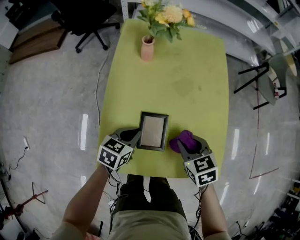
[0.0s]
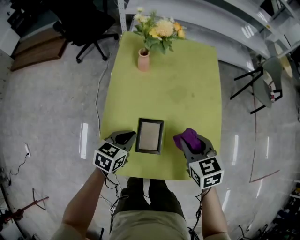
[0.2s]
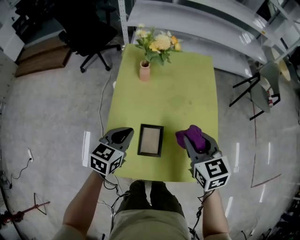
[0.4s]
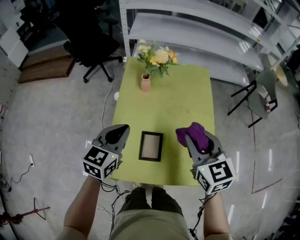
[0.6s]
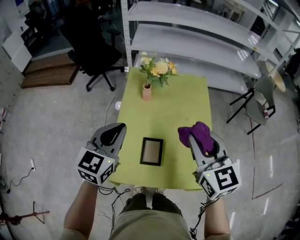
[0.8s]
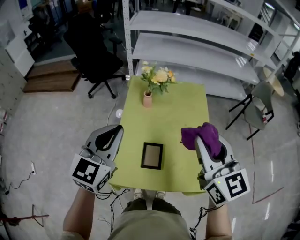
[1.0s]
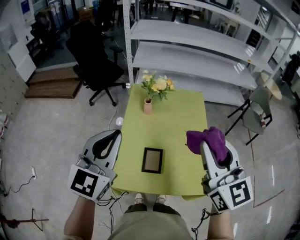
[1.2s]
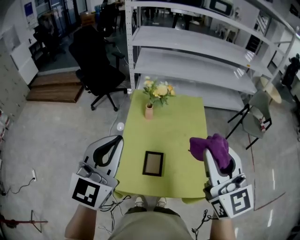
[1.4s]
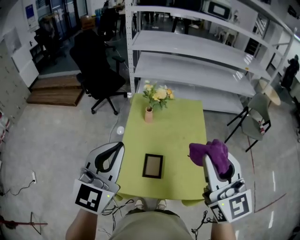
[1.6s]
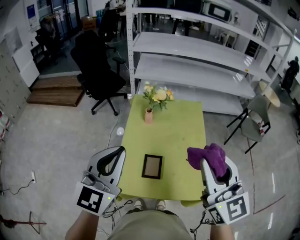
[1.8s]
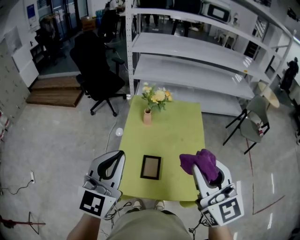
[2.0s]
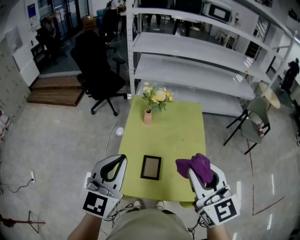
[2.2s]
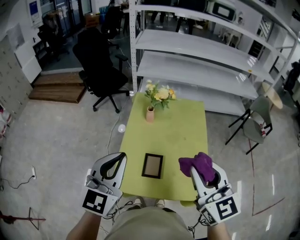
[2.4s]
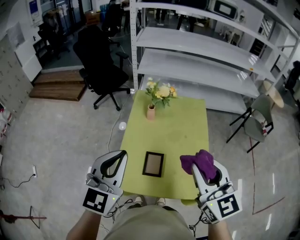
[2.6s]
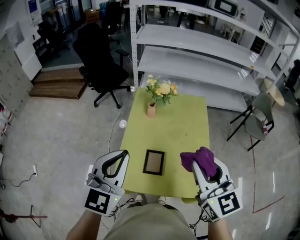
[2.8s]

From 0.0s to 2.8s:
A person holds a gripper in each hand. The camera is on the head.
From 0.0s to 1.4s: Both grippers travel together upward, roughly 50 cm. The left gripper angles its fingers upward, by about 40 degrees. The right gripper angles its fingers upward, by approximately 50 degrees.
From 1.4s to 2.8s: The left gripper ends up some 5 cm from where it was. Meanwhile the right gripper travels downward by roughly 5 cm.

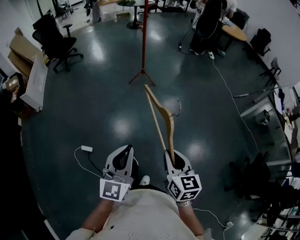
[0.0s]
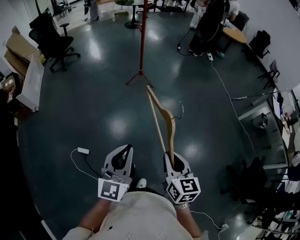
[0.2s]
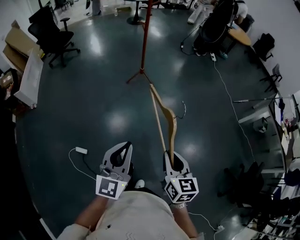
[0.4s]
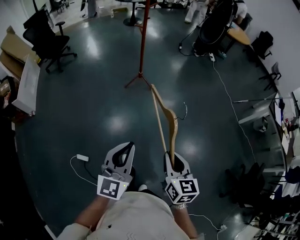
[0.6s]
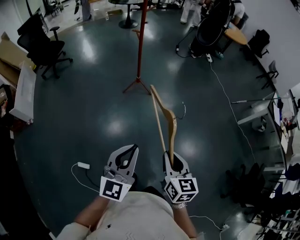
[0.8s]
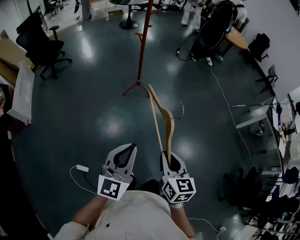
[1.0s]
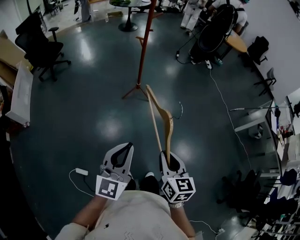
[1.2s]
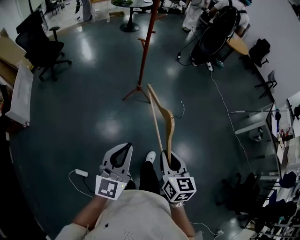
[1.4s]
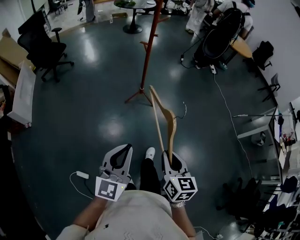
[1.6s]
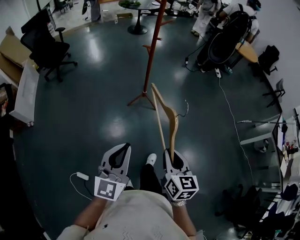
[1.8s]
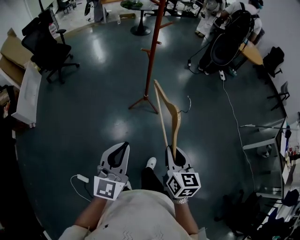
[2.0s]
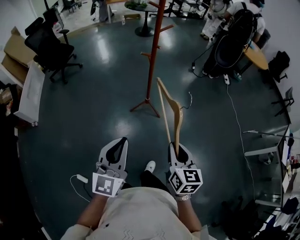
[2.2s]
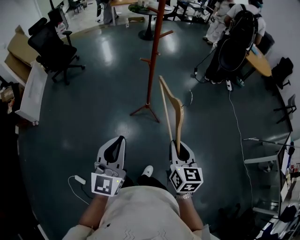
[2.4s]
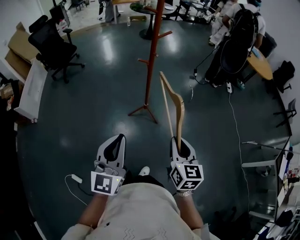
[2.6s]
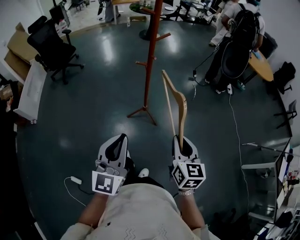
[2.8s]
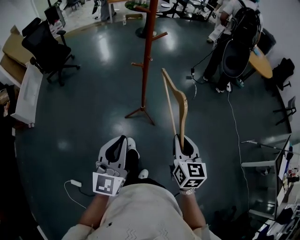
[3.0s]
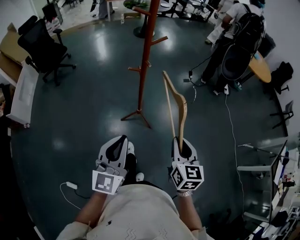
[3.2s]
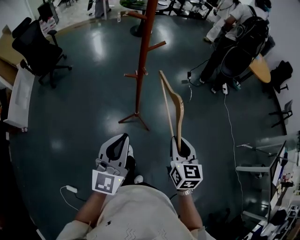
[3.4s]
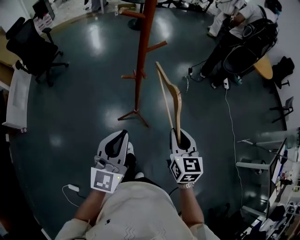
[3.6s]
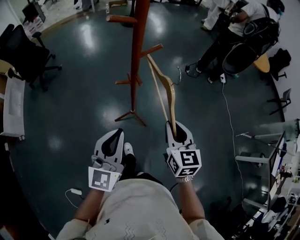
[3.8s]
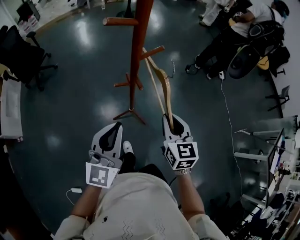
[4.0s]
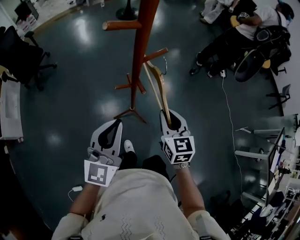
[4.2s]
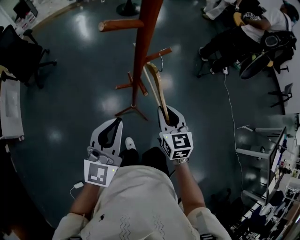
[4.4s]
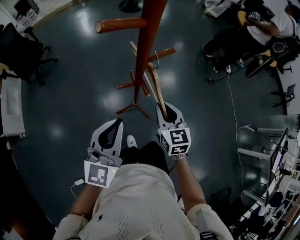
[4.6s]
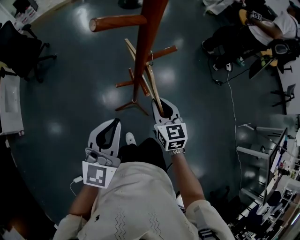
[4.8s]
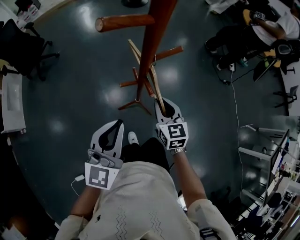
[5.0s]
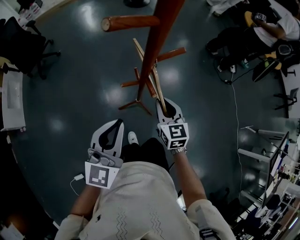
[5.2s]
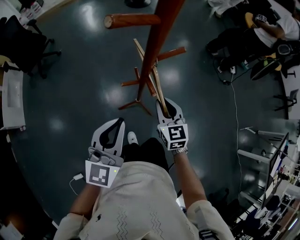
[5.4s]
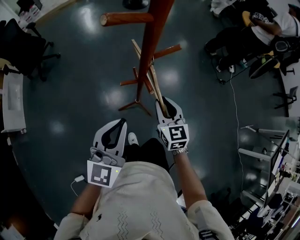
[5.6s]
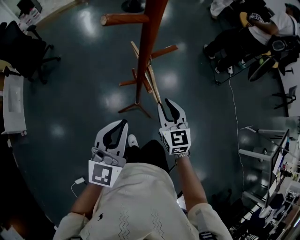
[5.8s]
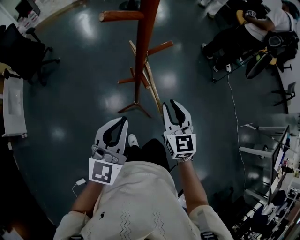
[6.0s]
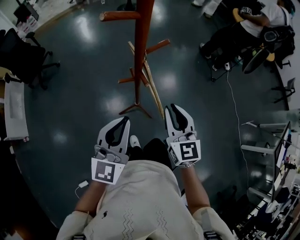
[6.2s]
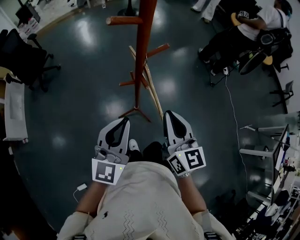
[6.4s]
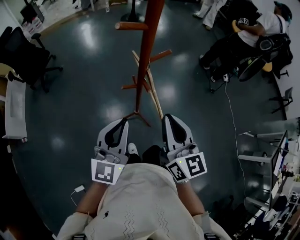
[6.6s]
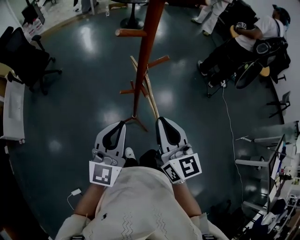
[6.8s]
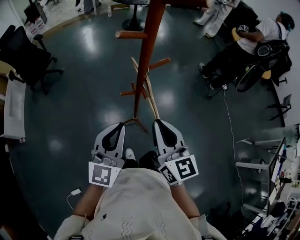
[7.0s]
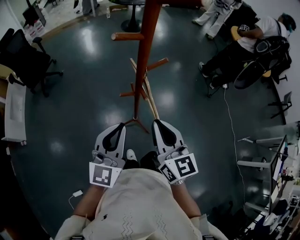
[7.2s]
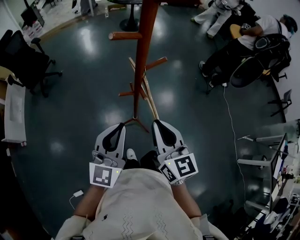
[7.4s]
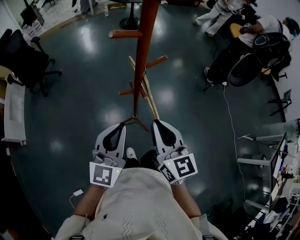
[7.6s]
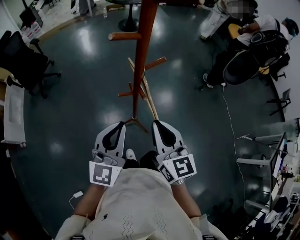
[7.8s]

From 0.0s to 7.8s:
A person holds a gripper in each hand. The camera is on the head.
From 0.0s to 1.6s: The two grippers travel together, forward, some 40 cm.
From 1.6s to 3.2s: The two grippers go some 40 cm forward.
From 3.2s to 4.6s: The two grippers go roughly 30 cm forward.
From 4.6s to 6.2s: The right gripper shifts about 10 cm upward and backward.
From 6.2s to 7.8s: The right gripper shifts approximately 5 cm upward.

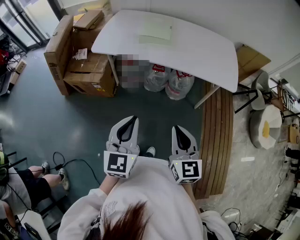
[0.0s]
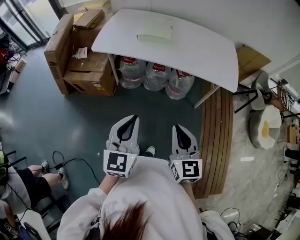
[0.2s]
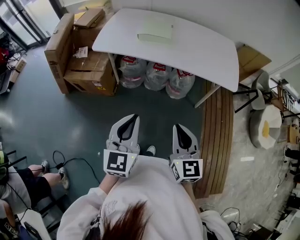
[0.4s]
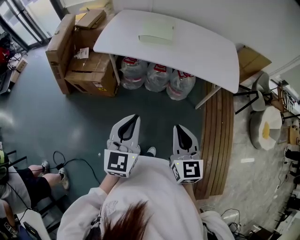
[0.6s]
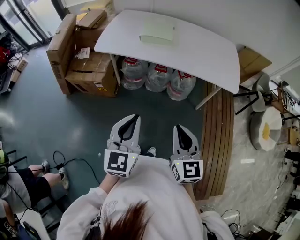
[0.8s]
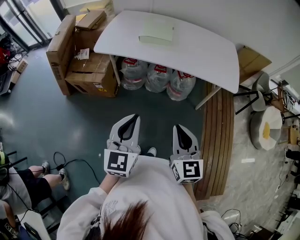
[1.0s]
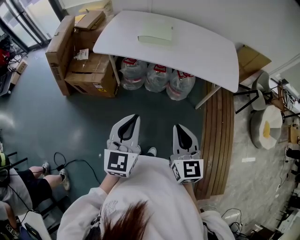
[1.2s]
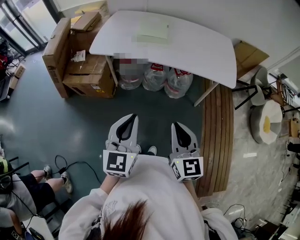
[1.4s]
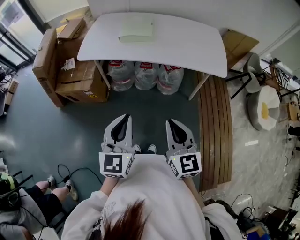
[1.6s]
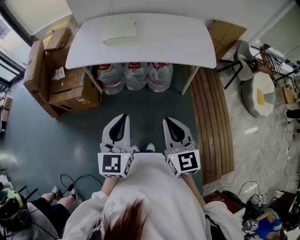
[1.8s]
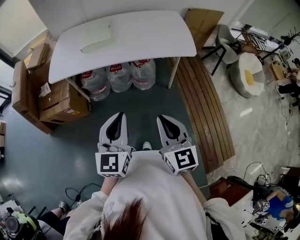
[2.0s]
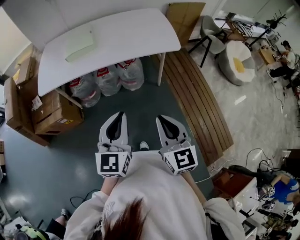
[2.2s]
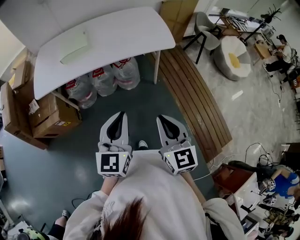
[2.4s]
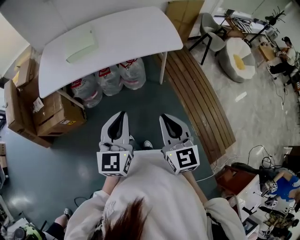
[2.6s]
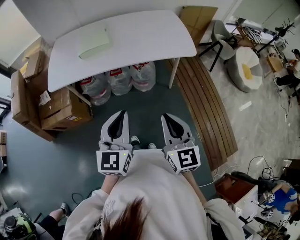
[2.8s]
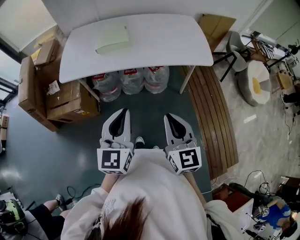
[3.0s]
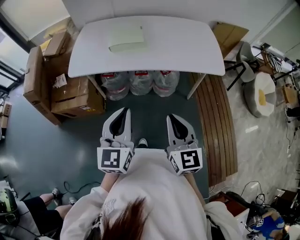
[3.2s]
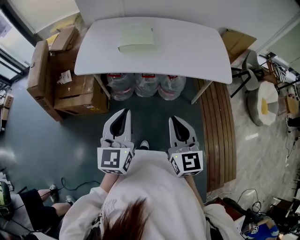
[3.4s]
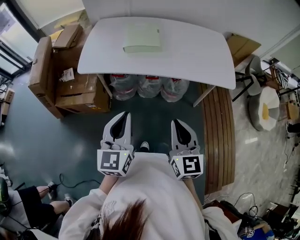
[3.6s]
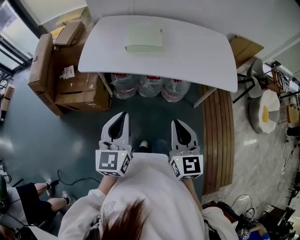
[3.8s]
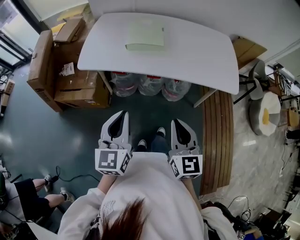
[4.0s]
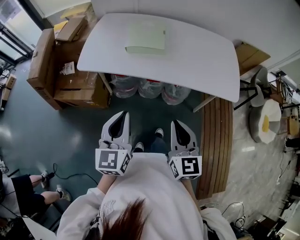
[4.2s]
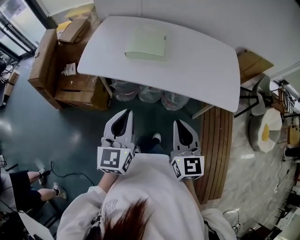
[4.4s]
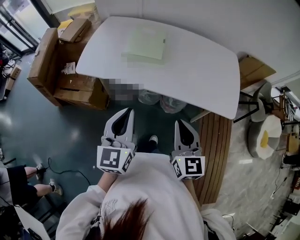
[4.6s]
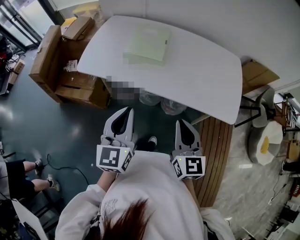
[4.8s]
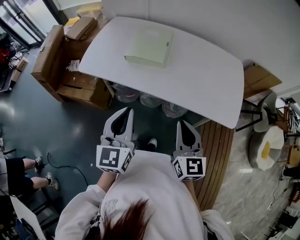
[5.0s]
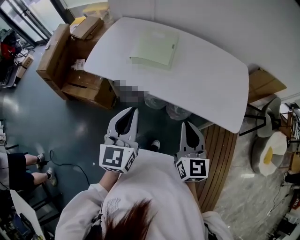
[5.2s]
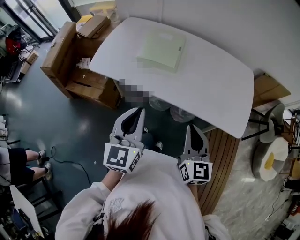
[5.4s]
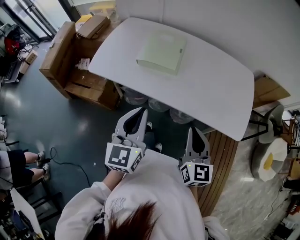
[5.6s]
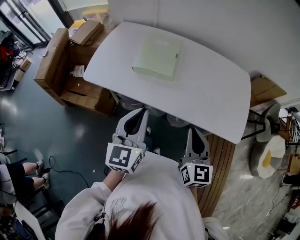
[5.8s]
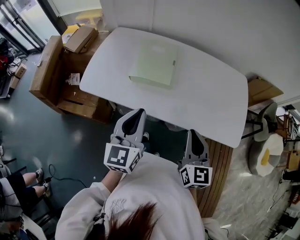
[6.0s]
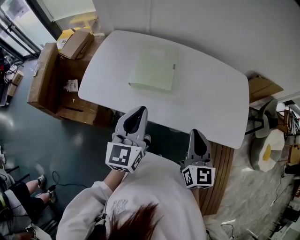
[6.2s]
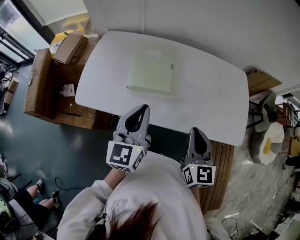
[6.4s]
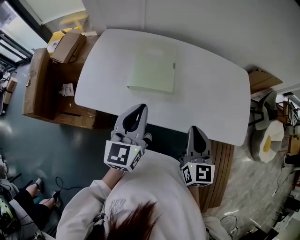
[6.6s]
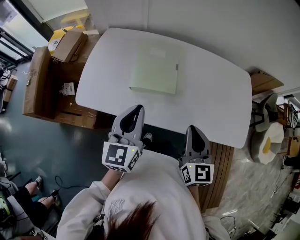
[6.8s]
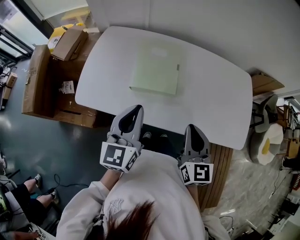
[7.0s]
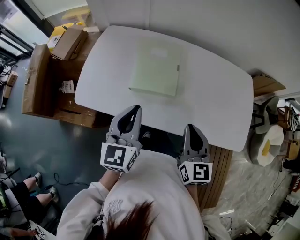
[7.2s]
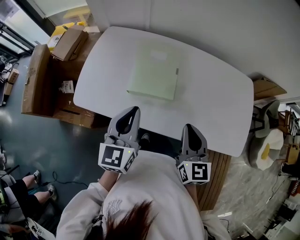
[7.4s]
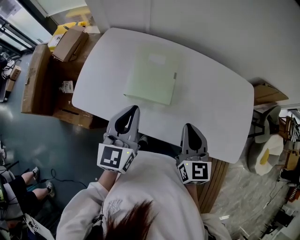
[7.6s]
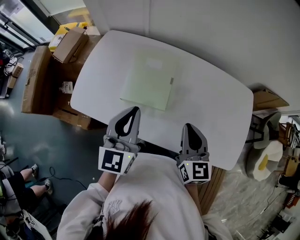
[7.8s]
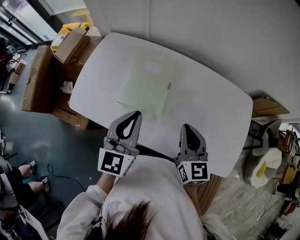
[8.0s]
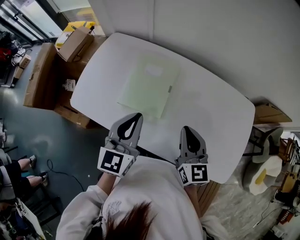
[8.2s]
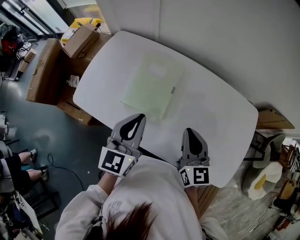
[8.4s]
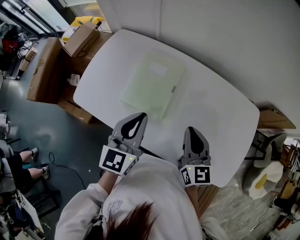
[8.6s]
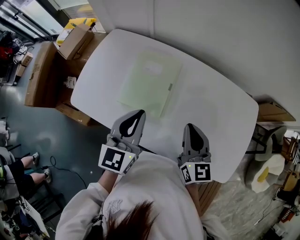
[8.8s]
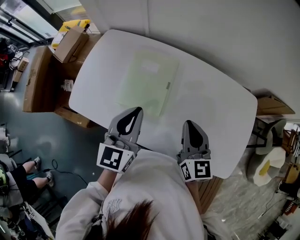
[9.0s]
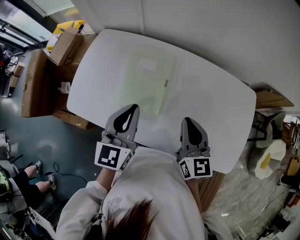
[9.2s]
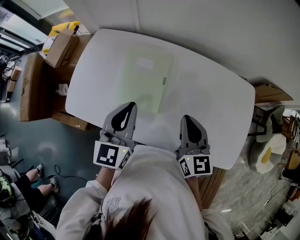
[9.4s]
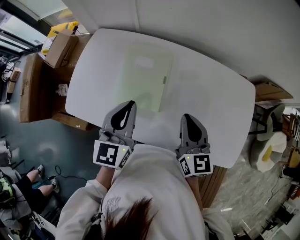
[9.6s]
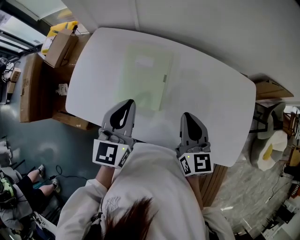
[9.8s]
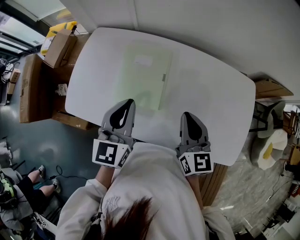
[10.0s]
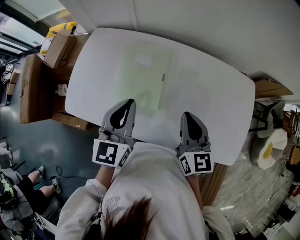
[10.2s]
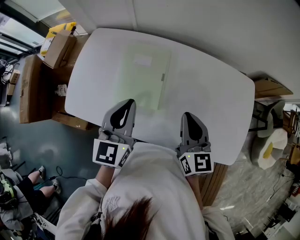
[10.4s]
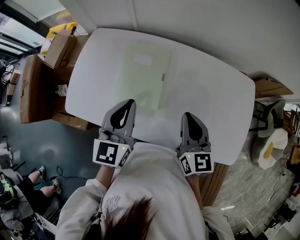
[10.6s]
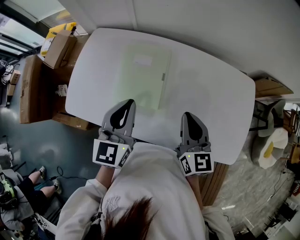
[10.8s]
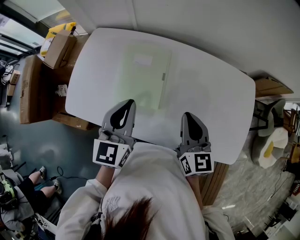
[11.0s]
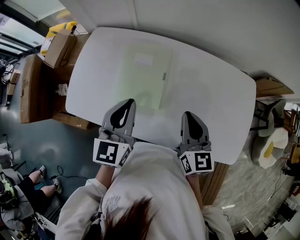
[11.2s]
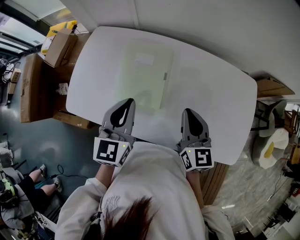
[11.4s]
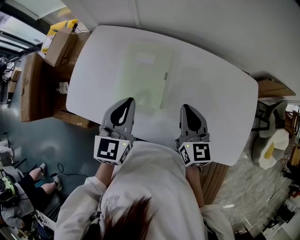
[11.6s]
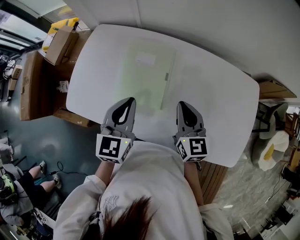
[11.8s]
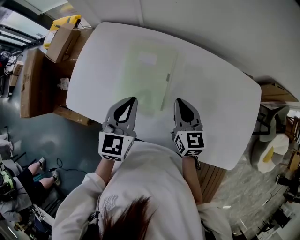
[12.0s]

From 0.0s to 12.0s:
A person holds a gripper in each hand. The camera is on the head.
From 0.0s to 1.6s: The grippers make only small movements.
From 1.6s to 3.0s: The left gripper goes some 5 cm forward, and moves some 15 cm to the right and comes back, while the right gripper travels to the right and back again, some 10 cm each way.
From 3.0s to 4.4s: Both grippers move forward, roughly 15 cm.
From 4.4s to 6.0s: The right gripper travels forward and to the right by approximately 15 cm, while the left gripper heads forward, covering approximately 15 cm.
From 6.0s to 7.6s: The two grippers go about 15 cm forward.
From 7.6s to 9.0s: The left gripper shifts about 10 cm to the right and forward. Meanwhile the right gripper goes some 10 cm forward and to the right.
From 9.0s to 10.4s: There are only small adjustments of the grippers.
From 10.4s to 12.0s: The right gripper shifts about 10 cm downward and forward, while the left gripper shifts about 5 cm downward.

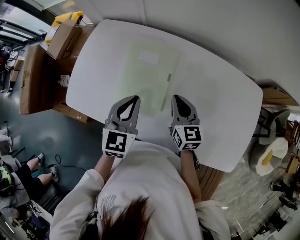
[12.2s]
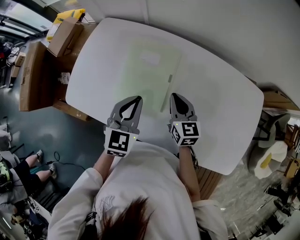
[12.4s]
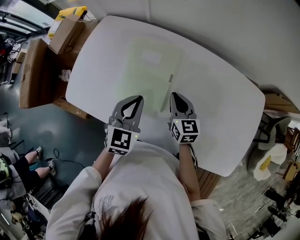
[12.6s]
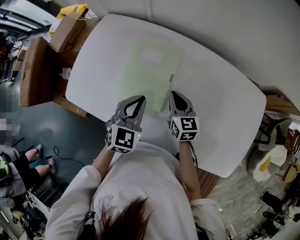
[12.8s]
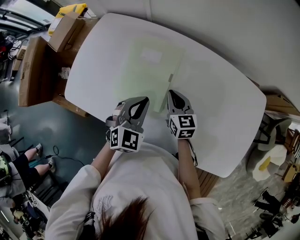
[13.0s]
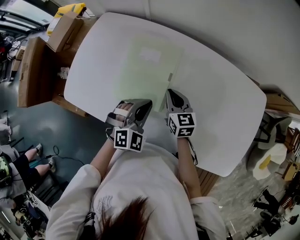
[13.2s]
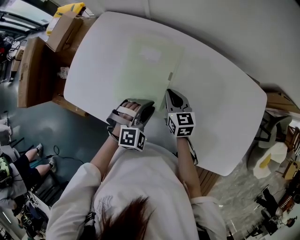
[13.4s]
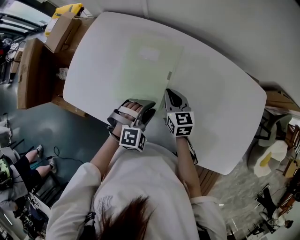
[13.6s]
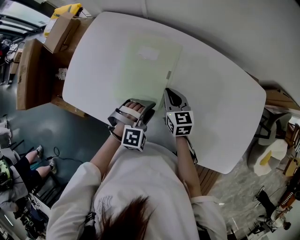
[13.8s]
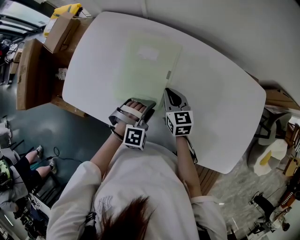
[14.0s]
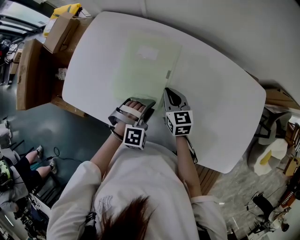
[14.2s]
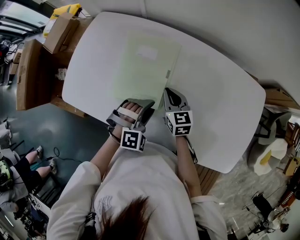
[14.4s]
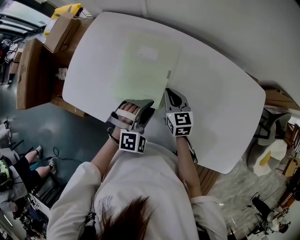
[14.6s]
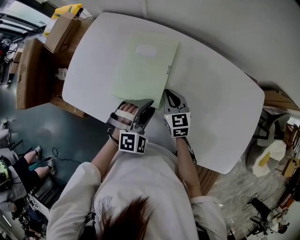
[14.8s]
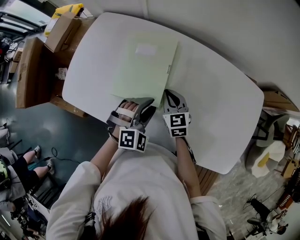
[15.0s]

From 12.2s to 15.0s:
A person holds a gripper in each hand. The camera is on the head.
From 12.2s to 13.6s: The right gripper travels downward by roughly 10 cm. Meanwhile the left gripper moves downward and to the right, approximately 15 cm, rotates around the line of its fingers by approximately 50 degrees, clockwise from behind, and opens its fingers.
From 13.6s to 15.0s: The grippers stay close to where they were, moving slightly.
